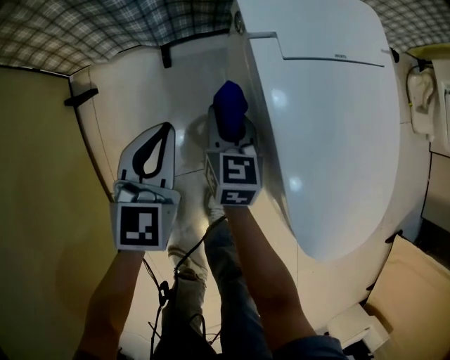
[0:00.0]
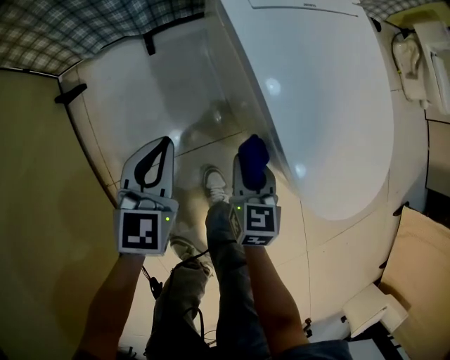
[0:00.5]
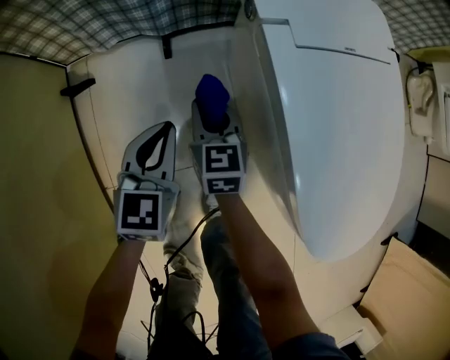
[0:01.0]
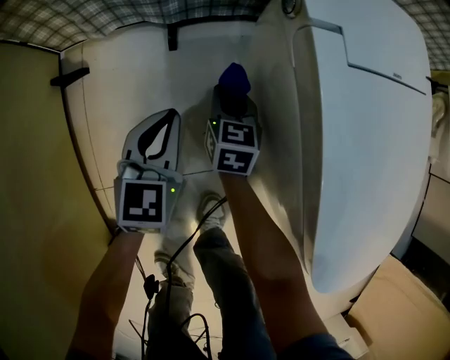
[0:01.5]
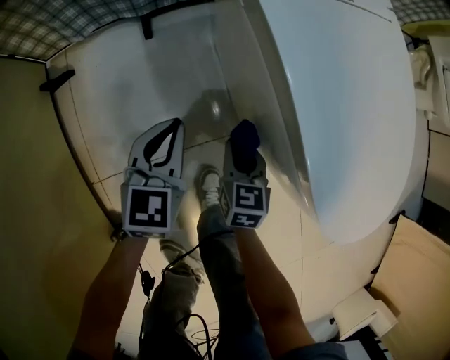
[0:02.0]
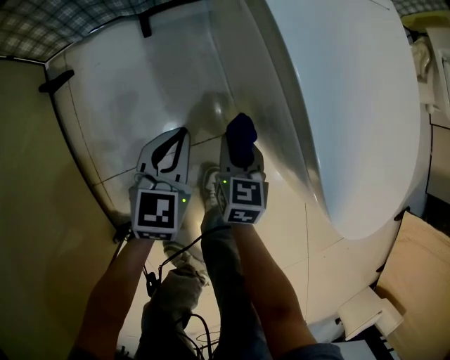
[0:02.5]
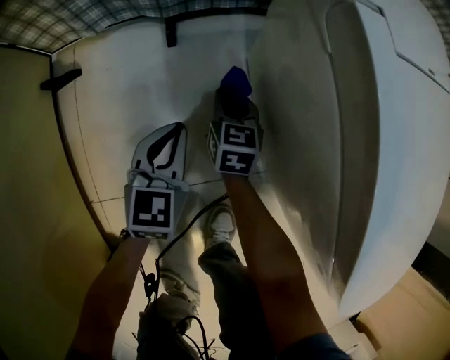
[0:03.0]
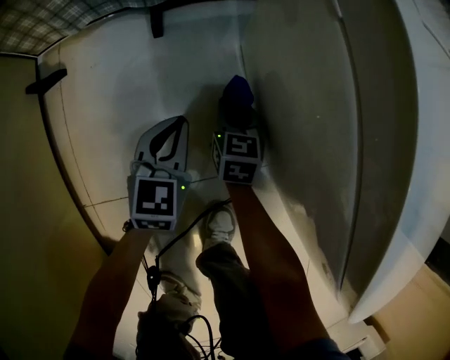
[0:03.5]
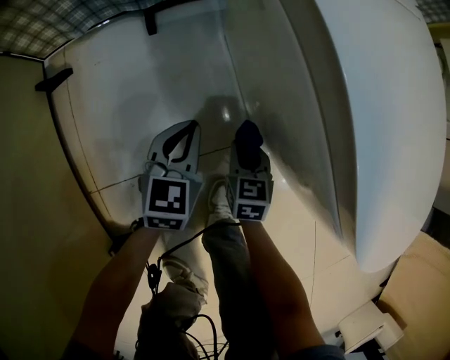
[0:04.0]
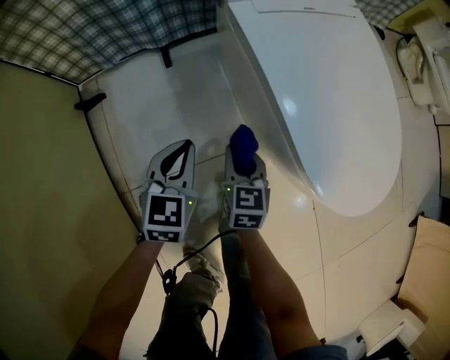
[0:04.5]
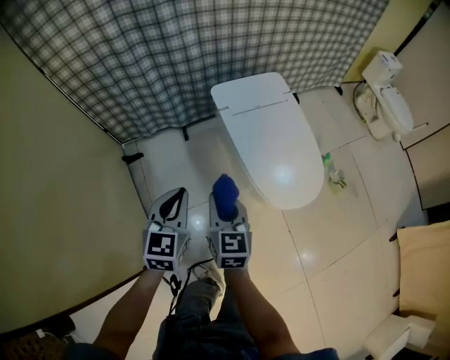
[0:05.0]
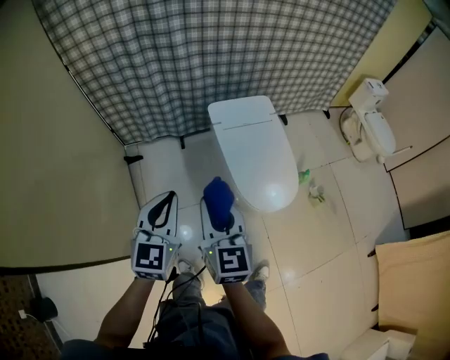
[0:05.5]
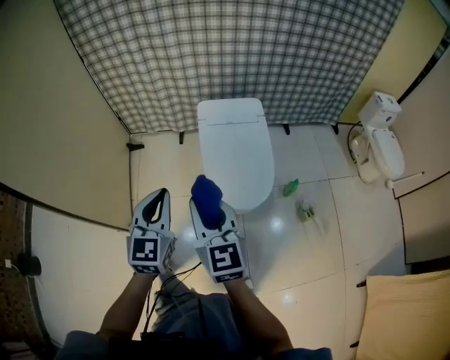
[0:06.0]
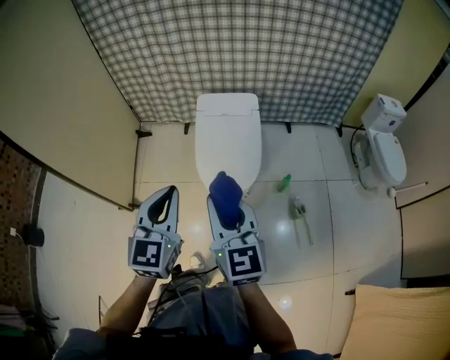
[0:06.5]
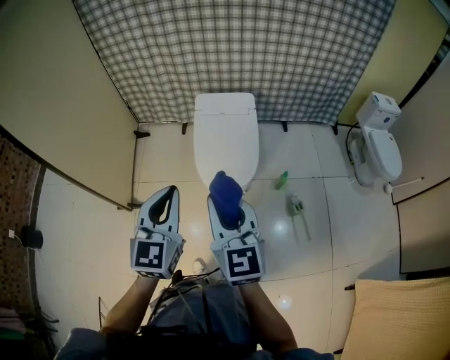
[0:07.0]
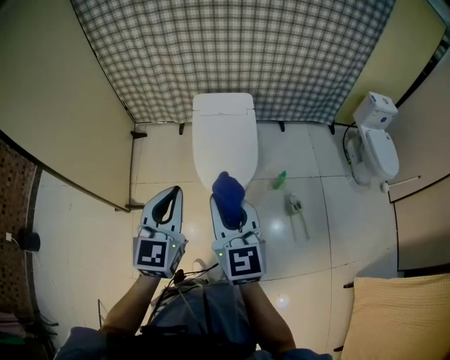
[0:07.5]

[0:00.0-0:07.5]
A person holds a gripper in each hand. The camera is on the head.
0:00.0 to 0:02.0: The left gripper swings forward and backward, about 15 cm each way, with 2 reversals, while the right gripper moves forward and backward over about 25 cm, changing direction 2 times.
0:02.0 to 0:04.0: The grippers both shift downward by approximately 10 cm. The right gripper reaches about 20 cm forward, then returns.
0:04.0 to 0:05.5: Both grippers move upward, approximately 70 cm. The right gripper points its fingers some 40 degrees further upward, while the left gripper swivels some 20 degrees.
0:05.5 to 0:07.5: Both grippers travel together to the right and backward, some 40 cm. The right gripper swivels about 20 degrees.

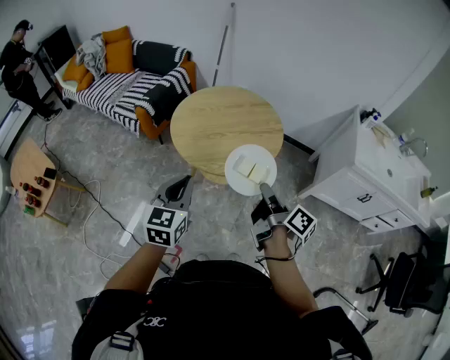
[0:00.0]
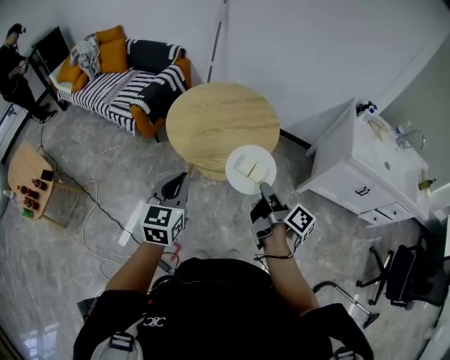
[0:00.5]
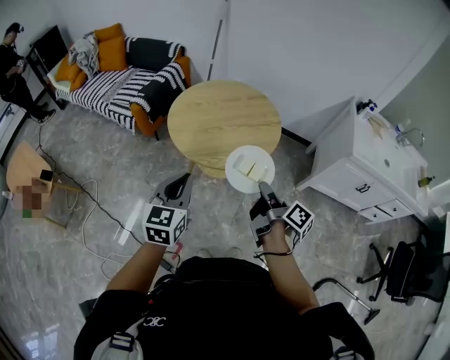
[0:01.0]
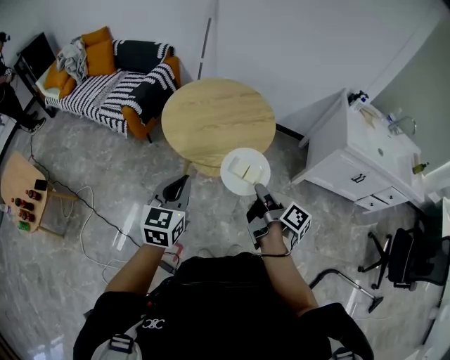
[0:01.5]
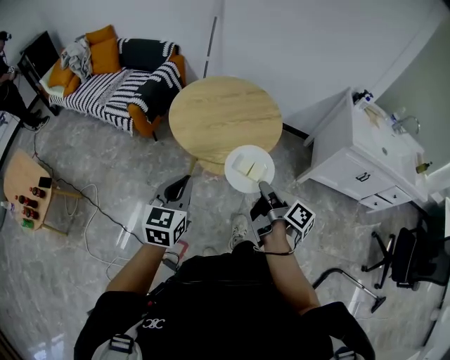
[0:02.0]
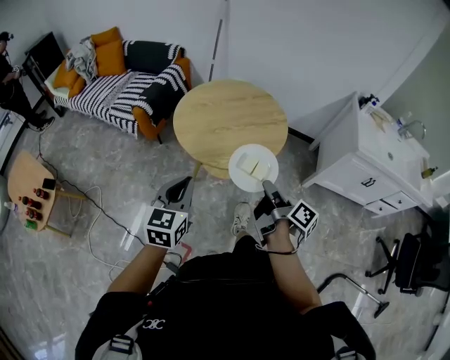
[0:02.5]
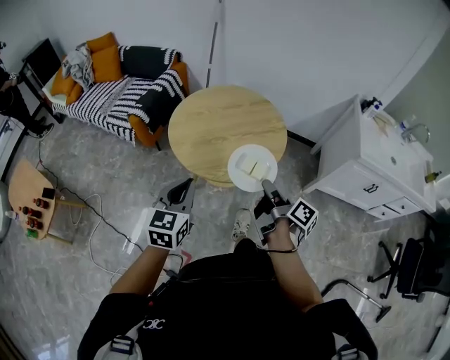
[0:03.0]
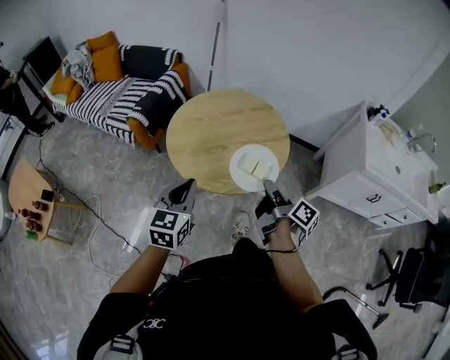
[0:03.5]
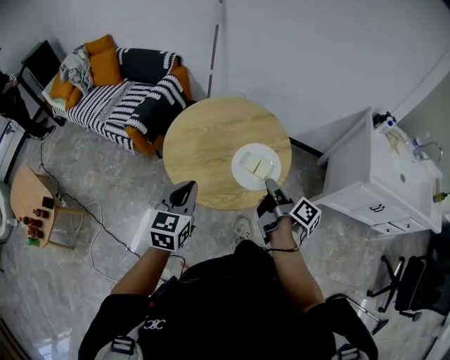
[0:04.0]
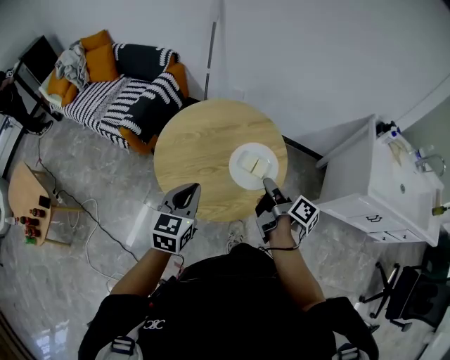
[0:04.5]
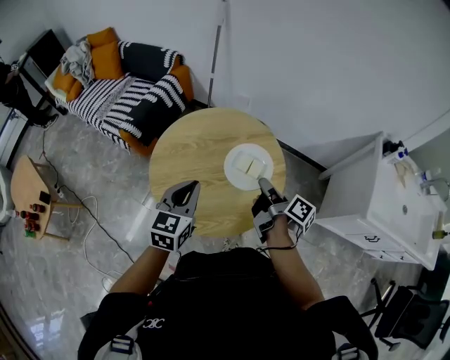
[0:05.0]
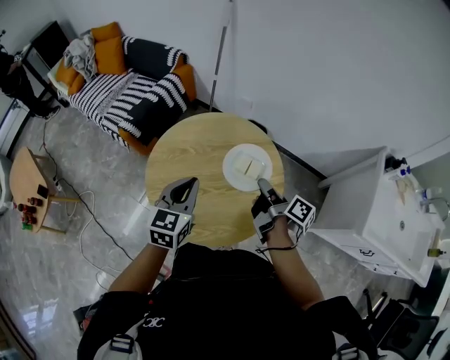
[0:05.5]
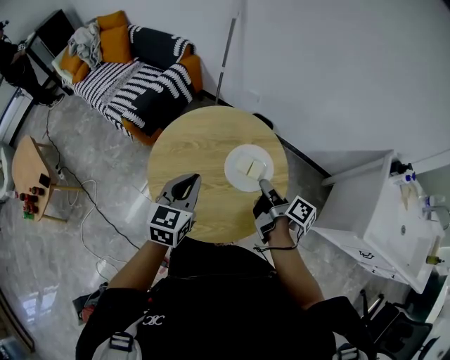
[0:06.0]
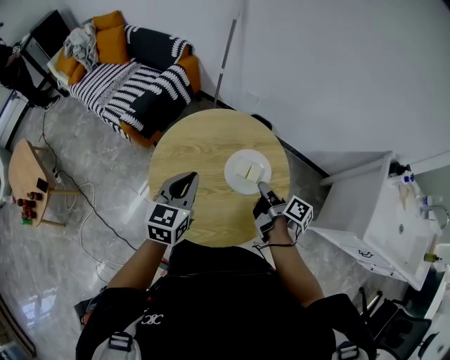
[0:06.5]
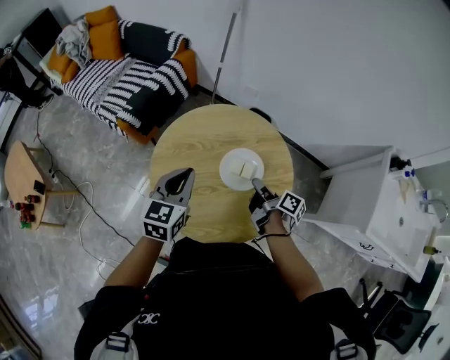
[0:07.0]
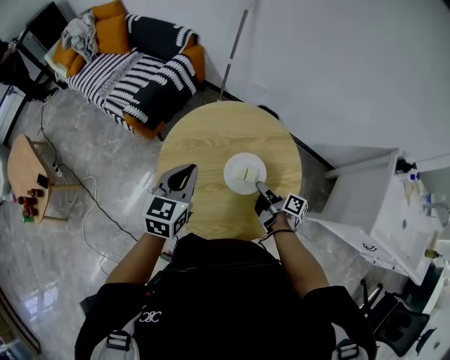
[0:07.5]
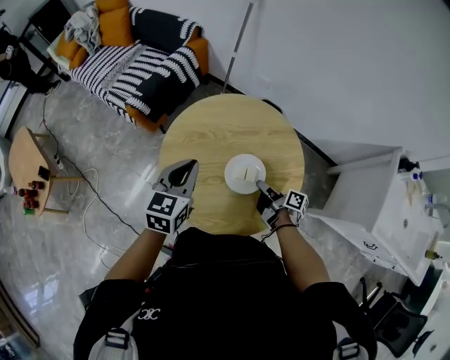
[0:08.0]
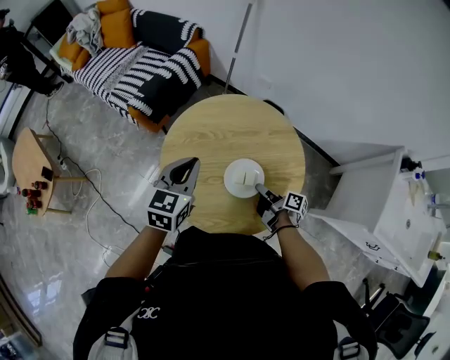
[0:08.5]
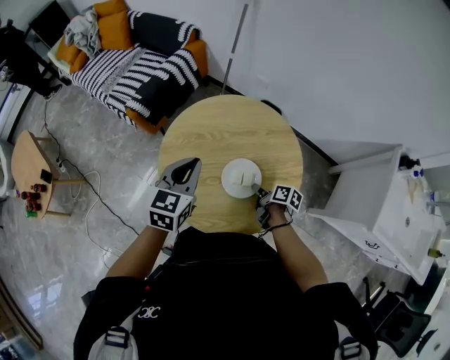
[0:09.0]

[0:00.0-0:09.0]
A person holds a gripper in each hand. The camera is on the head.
0:00.0 to 0:02.0: The right gripper moves about 5 cm.
0:02.0 to 0:04.5: The grippers both shift forward by approximately 25 cm.
0:04.5 to 0:07.0: The left gripper is displaced forward by roughly 15 cm. Meanwhile the right gripper is displaced forward and downward by roughly 15 cm.
0:07.0 to 0:09.0: The right gripper moves downward, some 10 cm, and swivels roughly 30 degrees.

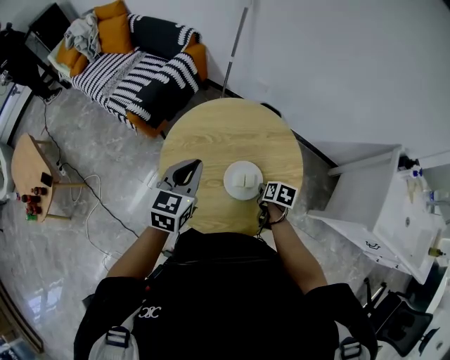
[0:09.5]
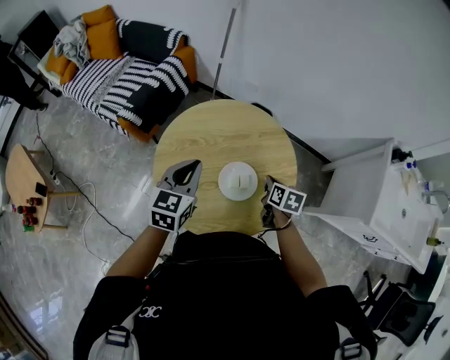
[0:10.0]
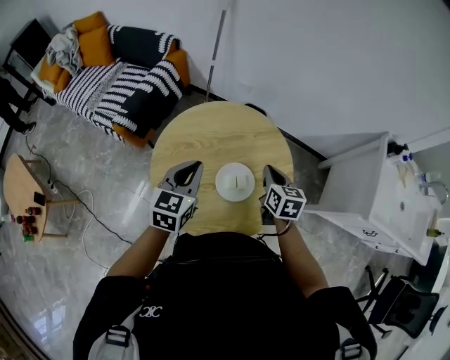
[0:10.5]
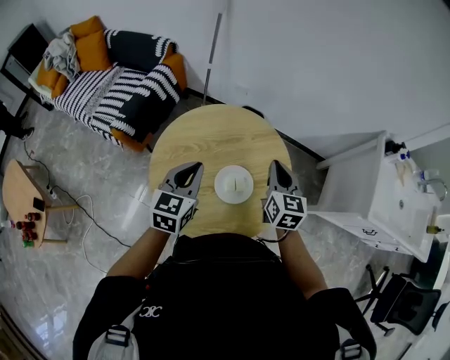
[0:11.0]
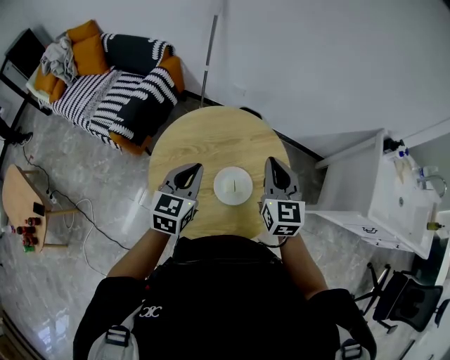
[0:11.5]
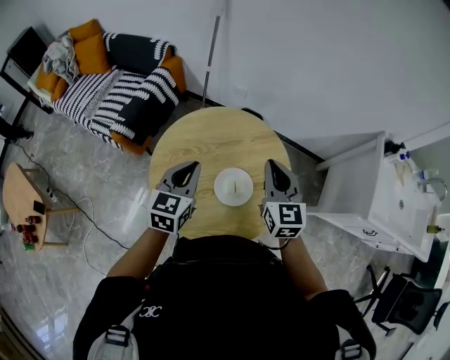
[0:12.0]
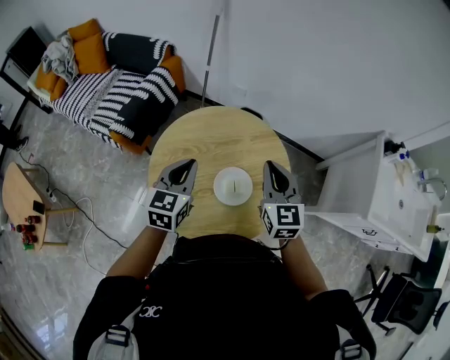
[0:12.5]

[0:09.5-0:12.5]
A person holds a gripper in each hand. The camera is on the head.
0:09.5 to 0:11.0: The right gripper shifts approximately 20 cm upward, and angles its fingers upward, by some 40 degrees.
0:11.0 to 0:12.5: The right gripper shifts by roughly 5 cm.

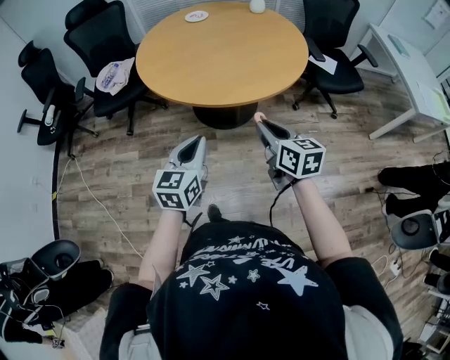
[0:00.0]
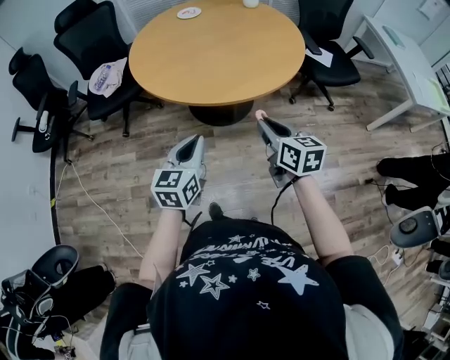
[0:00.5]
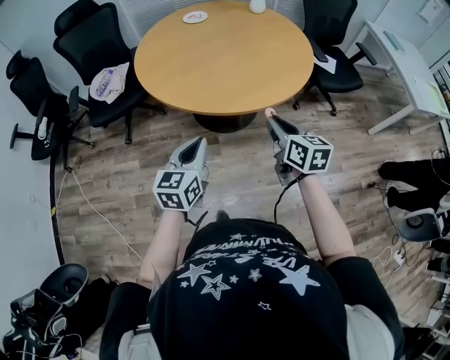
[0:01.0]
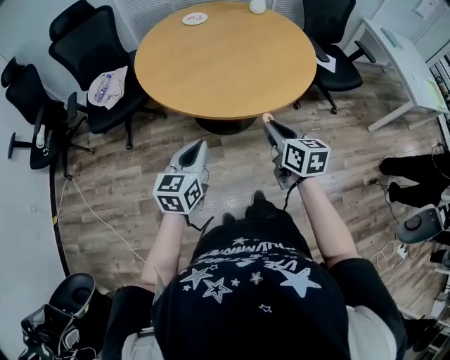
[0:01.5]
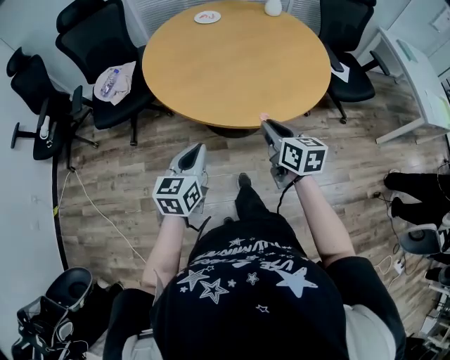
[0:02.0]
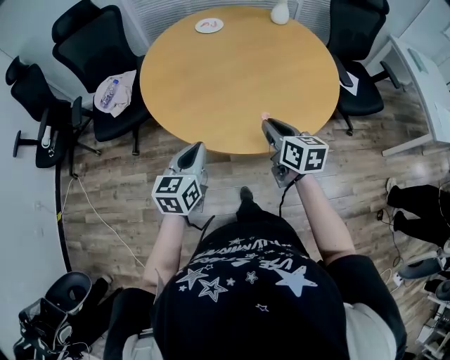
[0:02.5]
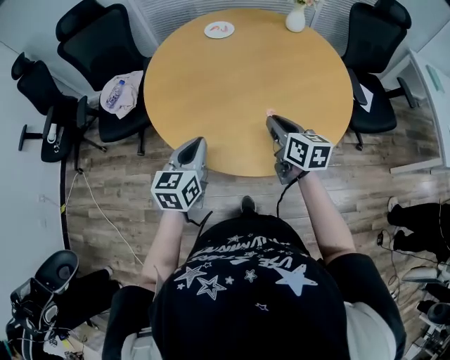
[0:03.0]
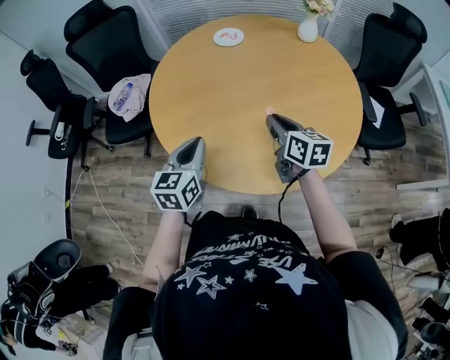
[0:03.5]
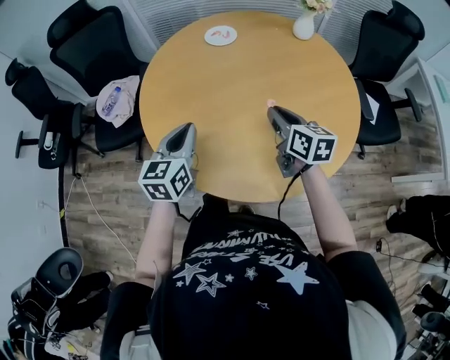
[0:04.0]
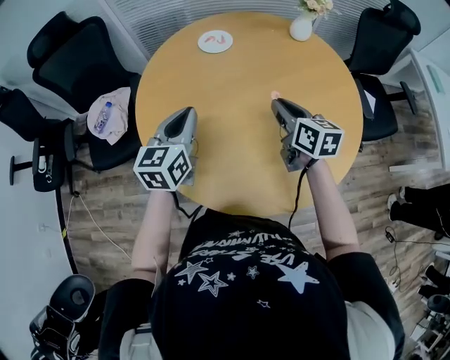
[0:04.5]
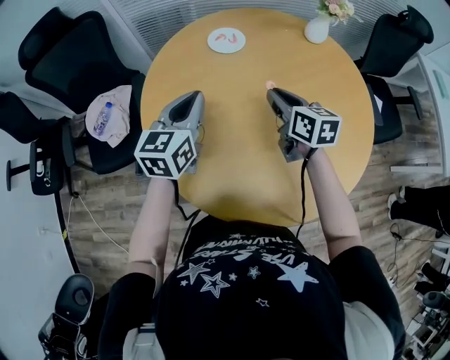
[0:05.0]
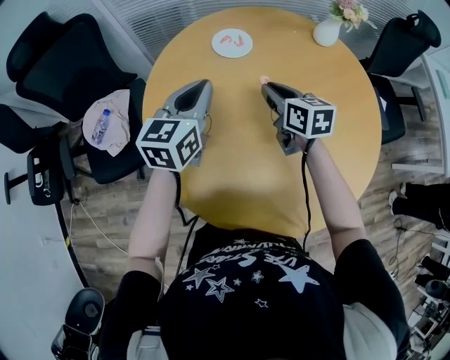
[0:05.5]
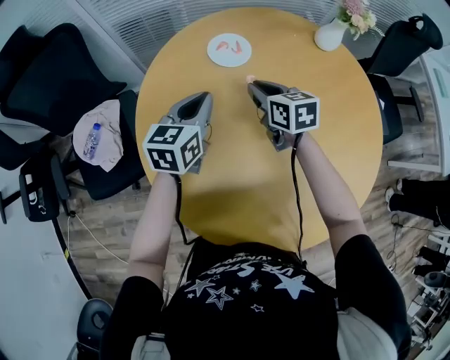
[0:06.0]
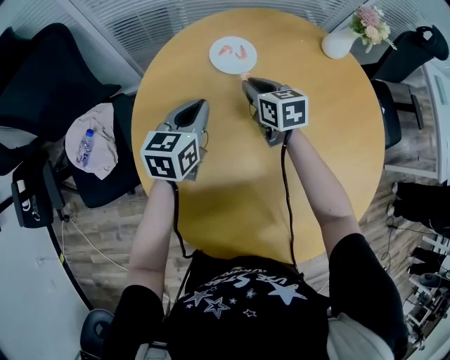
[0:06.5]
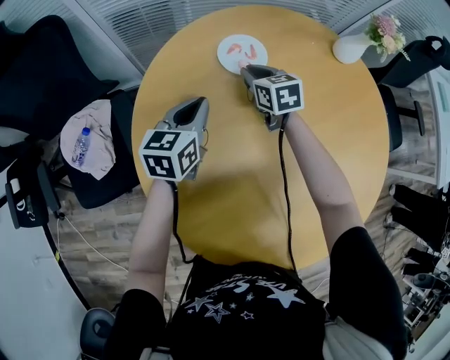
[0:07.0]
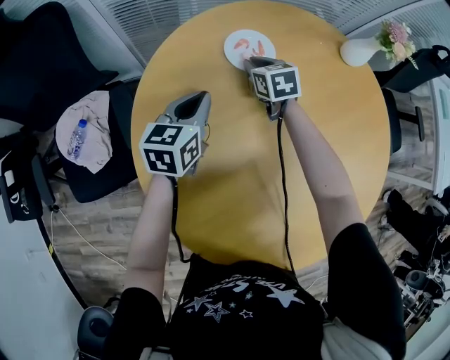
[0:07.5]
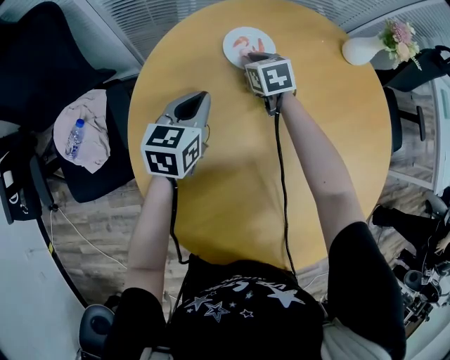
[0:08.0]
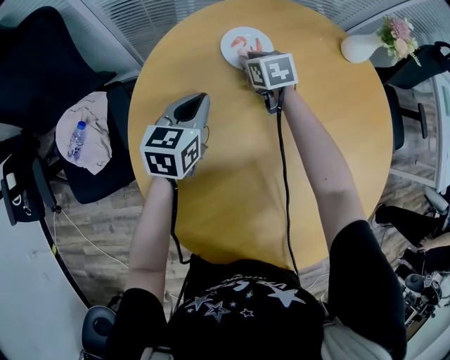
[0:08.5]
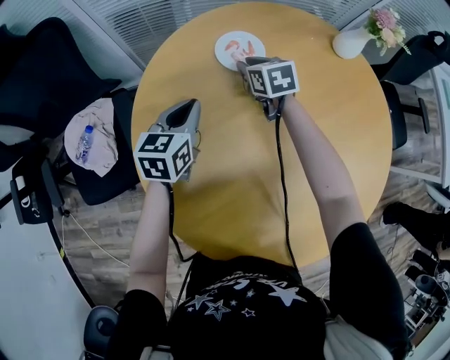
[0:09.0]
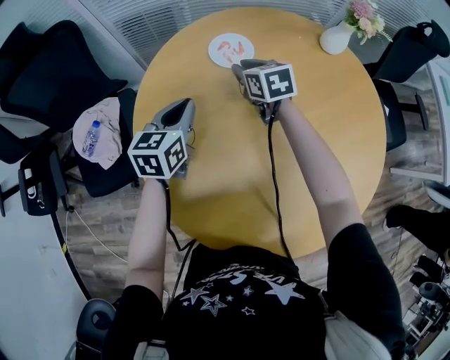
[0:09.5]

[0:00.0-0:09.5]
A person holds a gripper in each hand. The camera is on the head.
0:00.0 to 0:02.0: The two grippers go some 15 cm forward and to the left.
0:02.0 to 0:04.0: Both grippers travel together forward, roughly 35 cm.
0:04.0 to 0:05.5: The right gripper moves forward and to the left, roughly 25 cm. The left gripper travels forward by roughly 25 cm.
0:05.5 to 0:07.5: The left gripper is displaced downward and forward by some 20 cm. Meanwhile the right gripper goes roughly 25 cm forward and downward, and turns by some 20 degrees.
0:07.5 to 0:09.5: The right gripper goes roughly 10 cm upward and backward. Meanwhile the left gripper is displaced backward and upward by some 10 cm.
